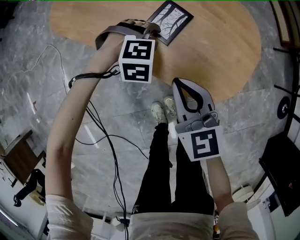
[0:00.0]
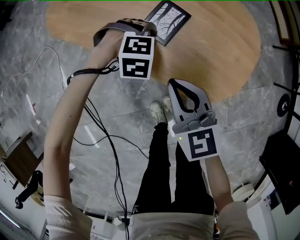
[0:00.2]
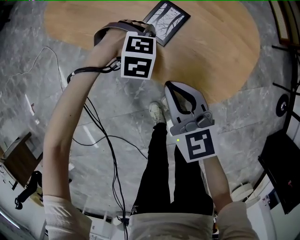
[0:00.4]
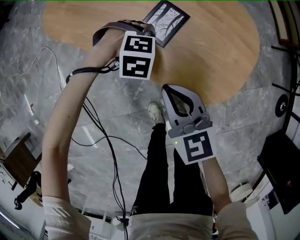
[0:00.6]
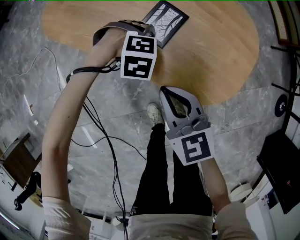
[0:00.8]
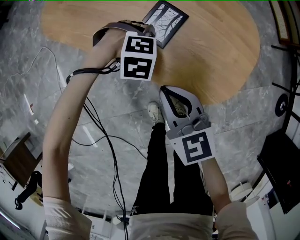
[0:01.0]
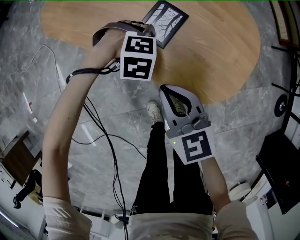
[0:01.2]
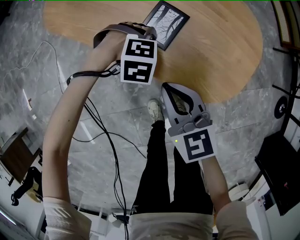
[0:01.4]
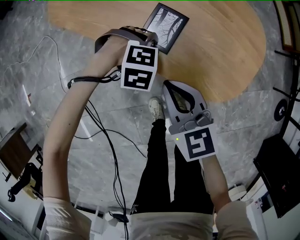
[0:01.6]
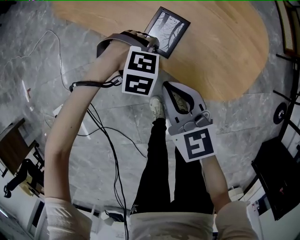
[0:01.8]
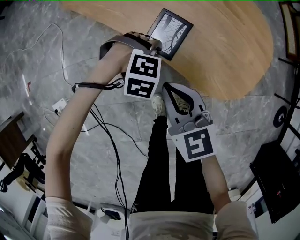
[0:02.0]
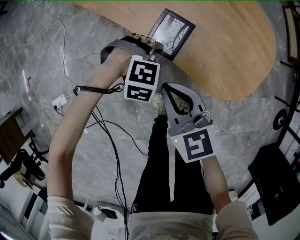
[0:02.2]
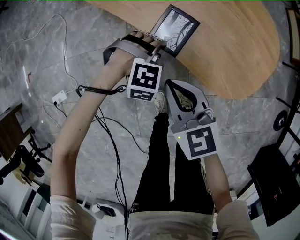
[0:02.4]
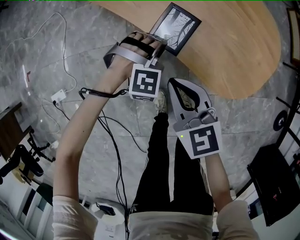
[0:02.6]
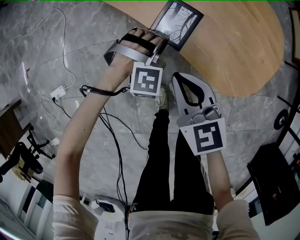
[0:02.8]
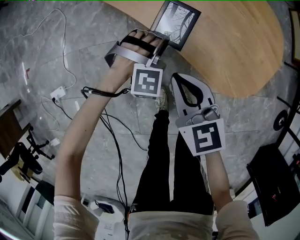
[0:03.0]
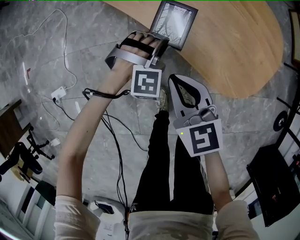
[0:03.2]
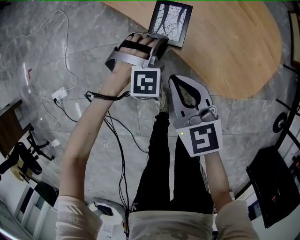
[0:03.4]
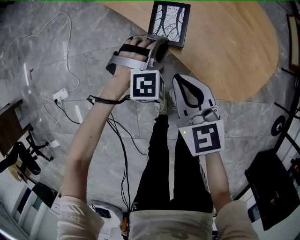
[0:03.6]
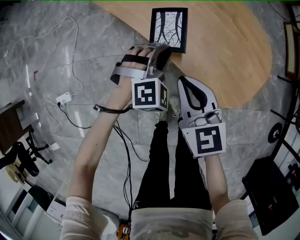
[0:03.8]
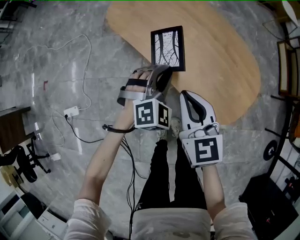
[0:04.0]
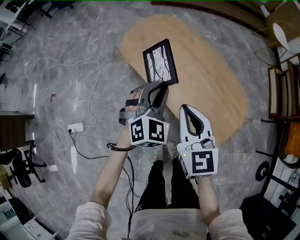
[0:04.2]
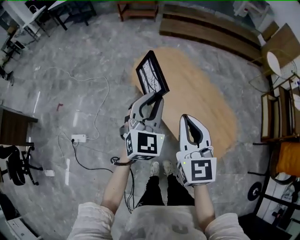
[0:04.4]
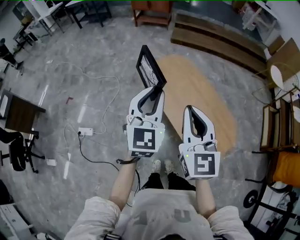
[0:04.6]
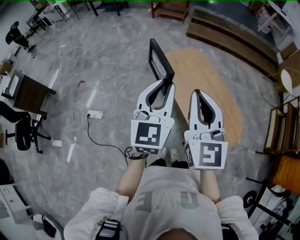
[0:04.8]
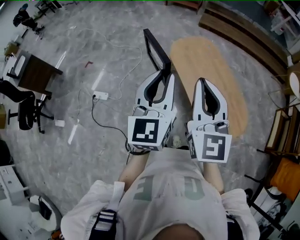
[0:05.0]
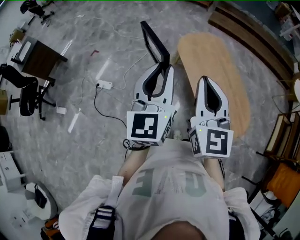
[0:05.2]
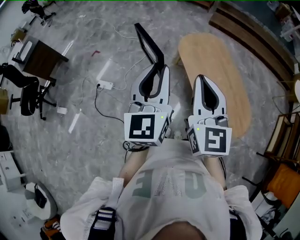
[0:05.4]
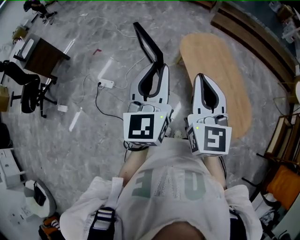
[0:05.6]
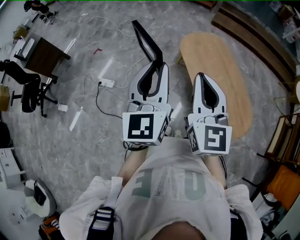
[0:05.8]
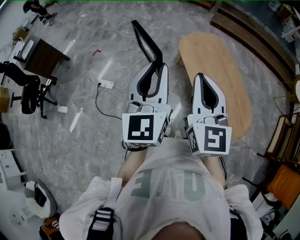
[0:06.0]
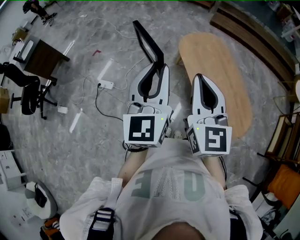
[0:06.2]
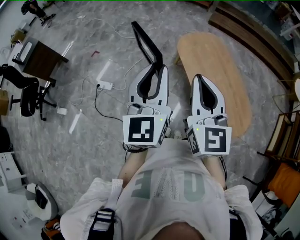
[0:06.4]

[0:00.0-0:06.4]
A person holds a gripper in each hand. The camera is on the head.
0:00.0 to 0:01.6: The left gripper moves about 5 cm.
0:01.6 to 0:03.2: The left gripper moves some 5 cm, swivels about 30 degrees, and closes its fingers. The right gripper shifts by approximately 5 cm.
0:03.2 to 0:04.8: Both grippers move upward, roughly 60 cm. The left gripper angles its fingers upward, by approximately 50 degrees. Meanwhile the right gripper tips its fingers upward by roughly 30 degrees.
0:04.8 to 0:06.4: The left gripper moves to the left and backward, about 10 cm; the right gripper is displaced to the left by some 5 cm.

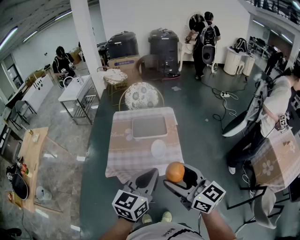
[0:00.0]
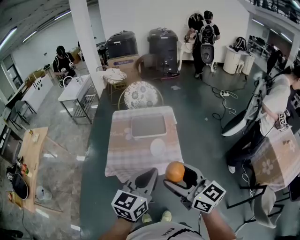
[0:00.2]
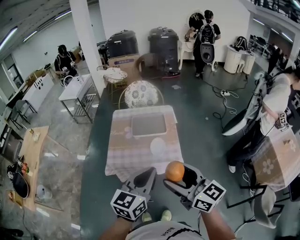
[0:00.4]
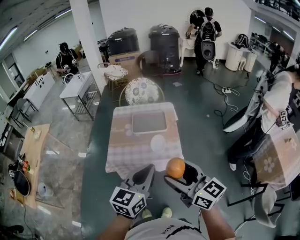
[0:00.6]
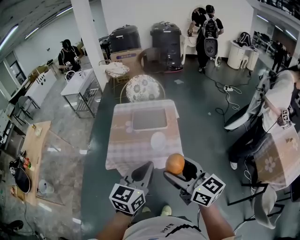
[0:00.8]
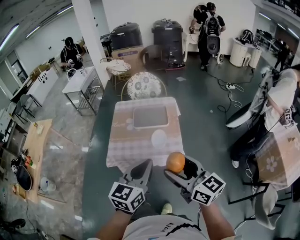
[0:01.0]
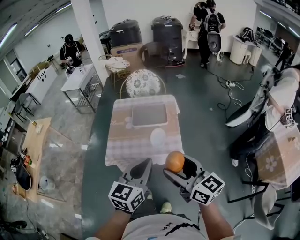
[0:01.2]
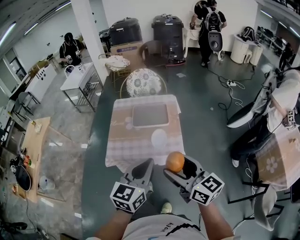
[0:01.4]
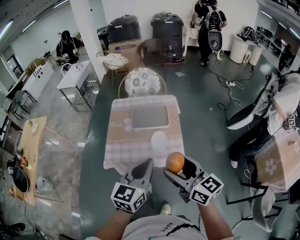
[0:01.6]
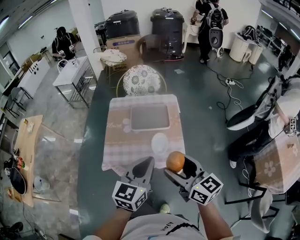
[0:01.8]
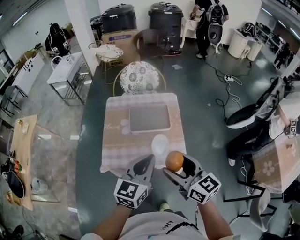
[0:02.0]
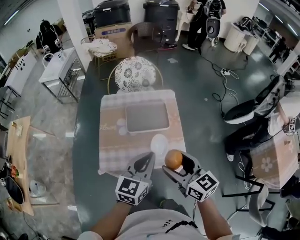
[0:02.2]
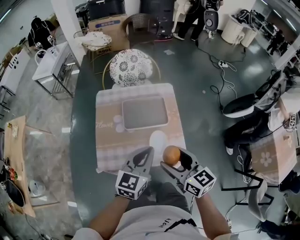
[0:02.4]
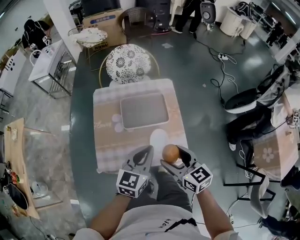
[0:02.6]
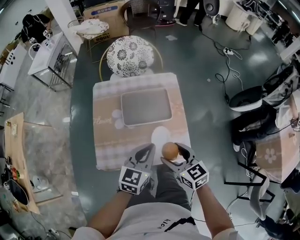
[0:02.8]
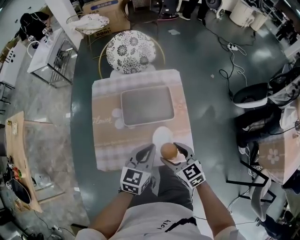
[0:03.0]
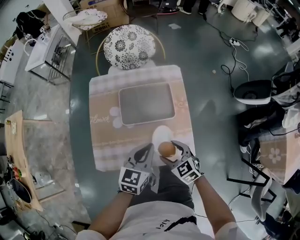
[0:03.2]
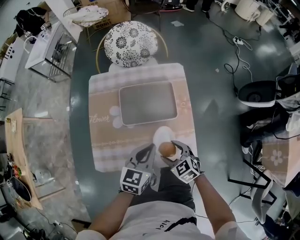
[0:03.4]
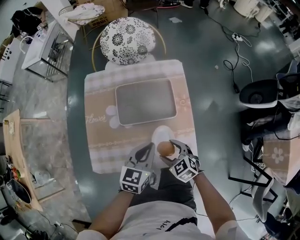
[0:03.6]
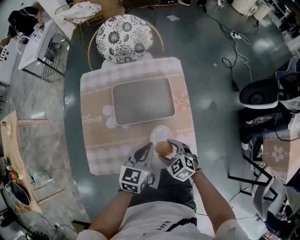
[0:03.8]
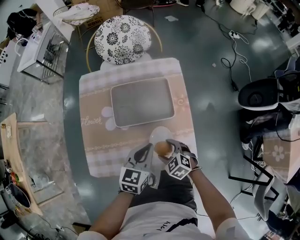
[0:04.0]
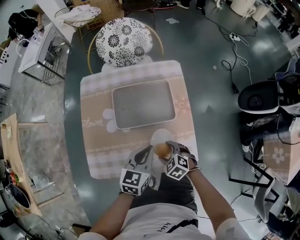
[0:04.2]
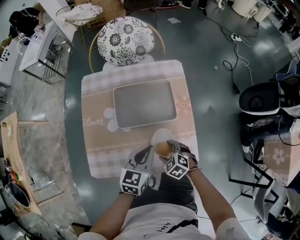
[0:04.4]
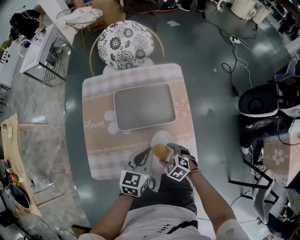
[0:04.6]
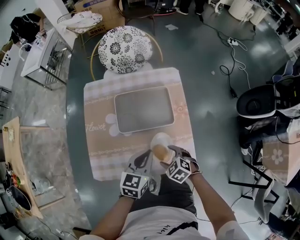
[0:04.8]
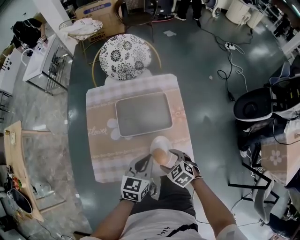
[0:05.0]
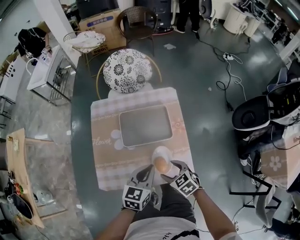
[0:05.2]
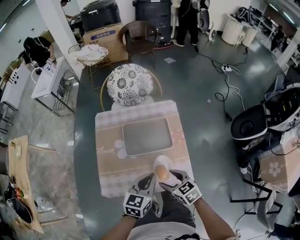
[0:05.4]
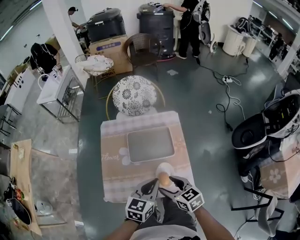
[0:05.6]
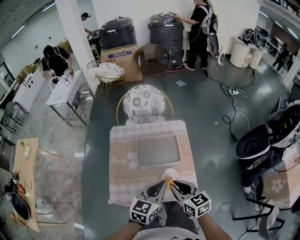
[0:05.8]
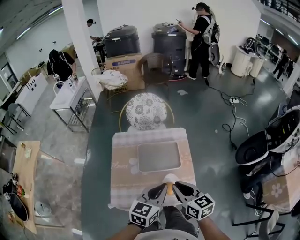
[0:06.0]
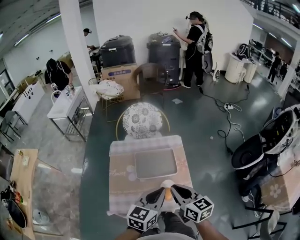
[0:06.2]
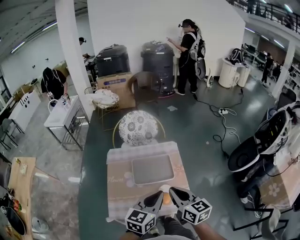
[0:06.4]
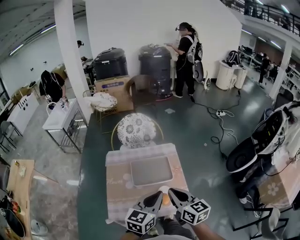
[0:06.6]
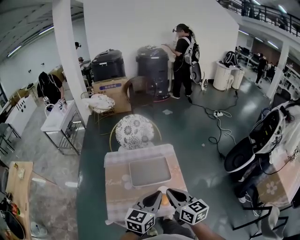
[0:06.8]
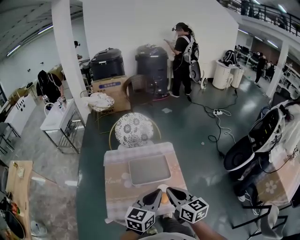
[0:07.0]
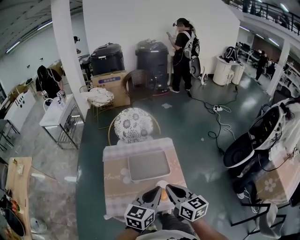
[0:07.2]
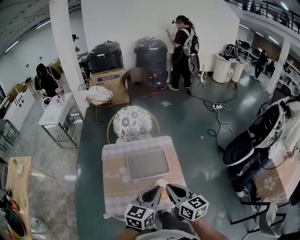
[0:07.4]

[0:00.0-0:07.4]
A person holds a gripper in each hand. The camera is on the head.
0:00.0 to 0:01.4: The right gripper moves about 5 cm, while the left gripper moves roughly 5 cm.
0:01.4 to 0:03.0: The right gripper travels downward and forward by about 35 cm, and angles its fingers downward, by approximately 30 degrees; the left gripper travels forward and downward by approximately 35 cm.
0:03.0 to 0:04.4: The left gripper shifts roughly 10 cm downward, while the right gripper shifts about 20 cm downward, and rotates some 30 degrees.
0:04.4 to 0:06.0: The left gripper heads upward, covering roughly 20 cm. The right gripper goes about 35 cm upward, points its fingers about 40 degrees further upward, and closes.
0:06.0 to 0:07.4: The grippers stay close to where they were, moving slightly.

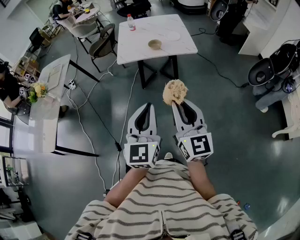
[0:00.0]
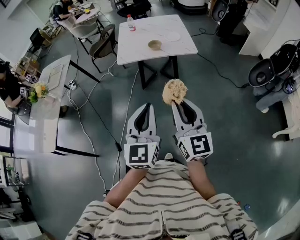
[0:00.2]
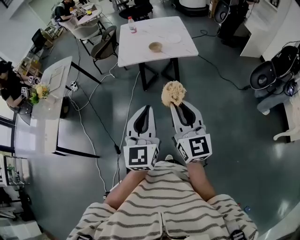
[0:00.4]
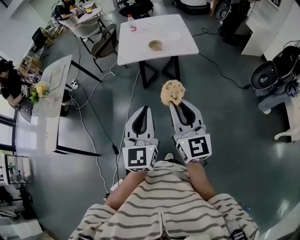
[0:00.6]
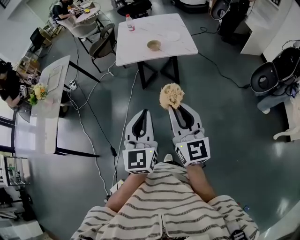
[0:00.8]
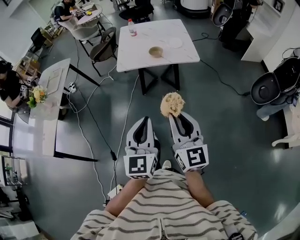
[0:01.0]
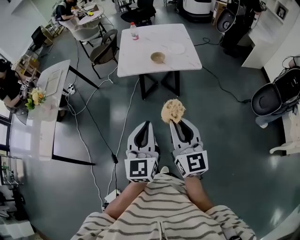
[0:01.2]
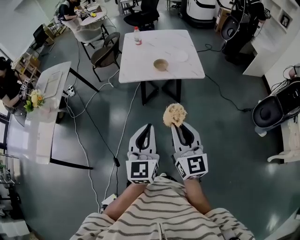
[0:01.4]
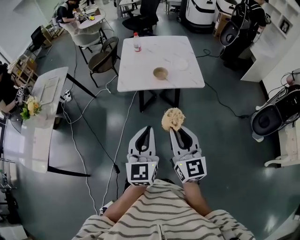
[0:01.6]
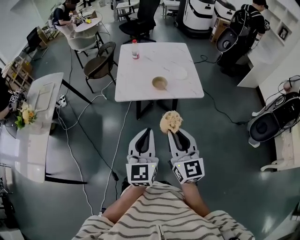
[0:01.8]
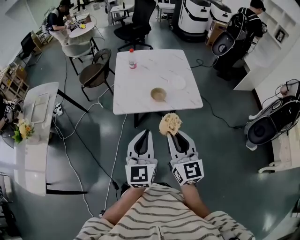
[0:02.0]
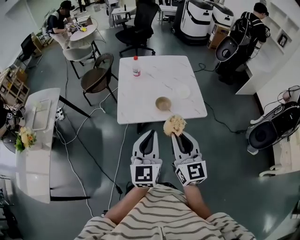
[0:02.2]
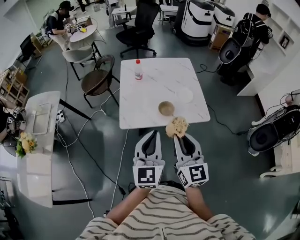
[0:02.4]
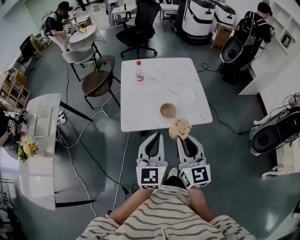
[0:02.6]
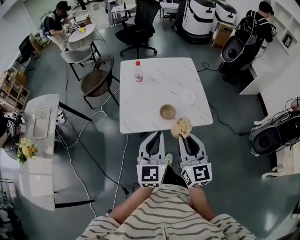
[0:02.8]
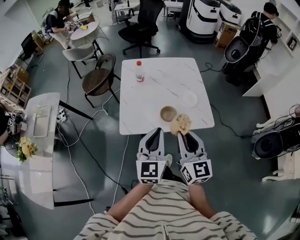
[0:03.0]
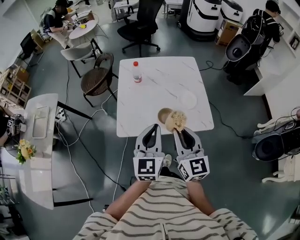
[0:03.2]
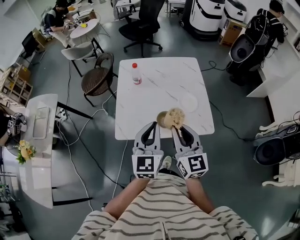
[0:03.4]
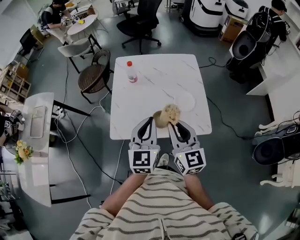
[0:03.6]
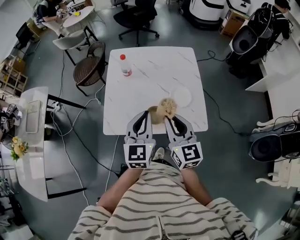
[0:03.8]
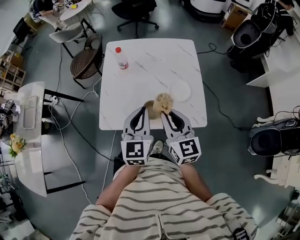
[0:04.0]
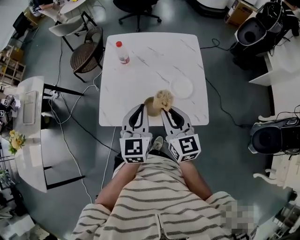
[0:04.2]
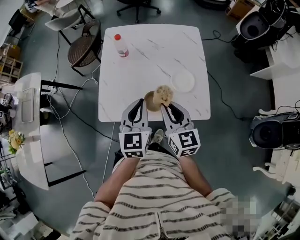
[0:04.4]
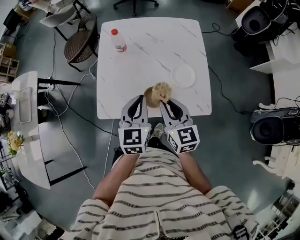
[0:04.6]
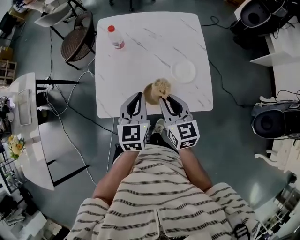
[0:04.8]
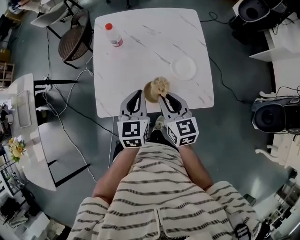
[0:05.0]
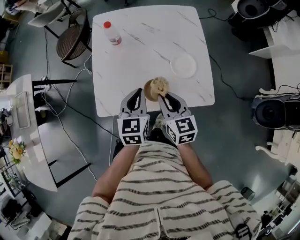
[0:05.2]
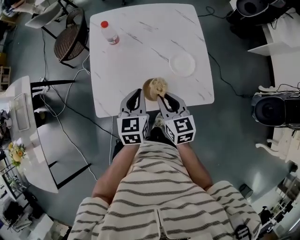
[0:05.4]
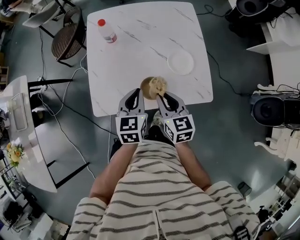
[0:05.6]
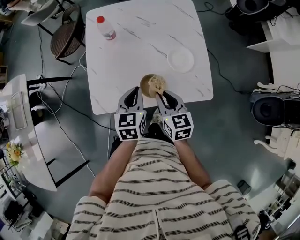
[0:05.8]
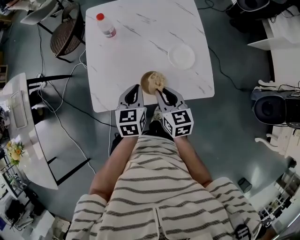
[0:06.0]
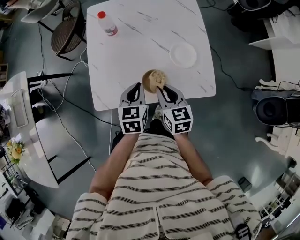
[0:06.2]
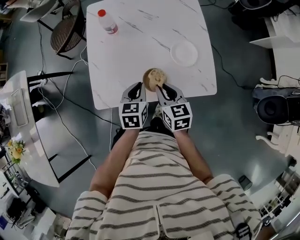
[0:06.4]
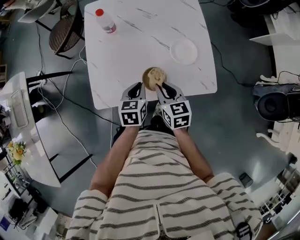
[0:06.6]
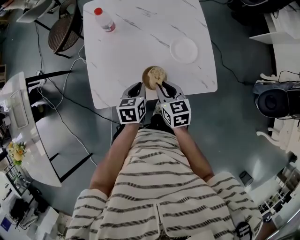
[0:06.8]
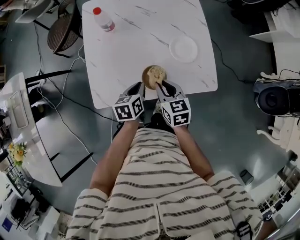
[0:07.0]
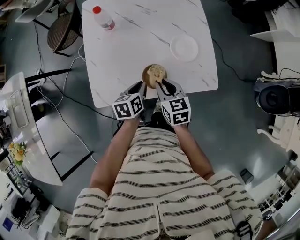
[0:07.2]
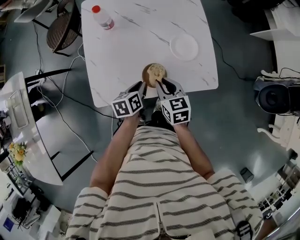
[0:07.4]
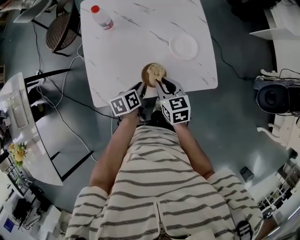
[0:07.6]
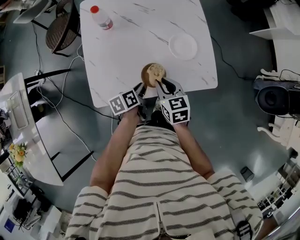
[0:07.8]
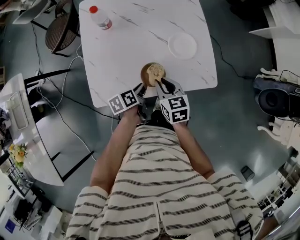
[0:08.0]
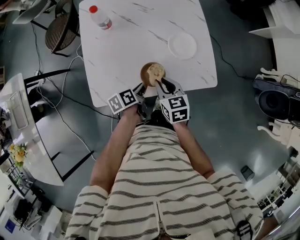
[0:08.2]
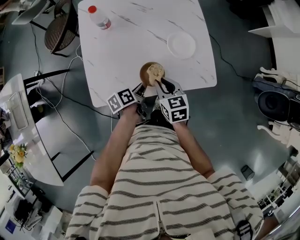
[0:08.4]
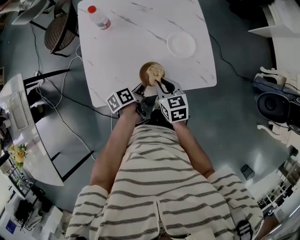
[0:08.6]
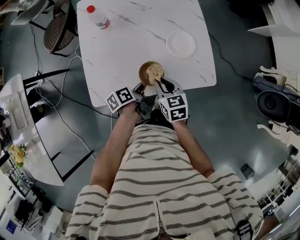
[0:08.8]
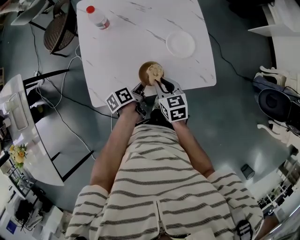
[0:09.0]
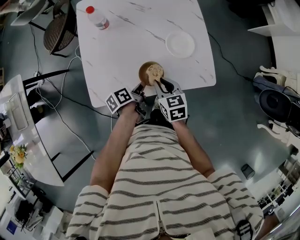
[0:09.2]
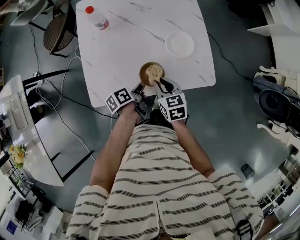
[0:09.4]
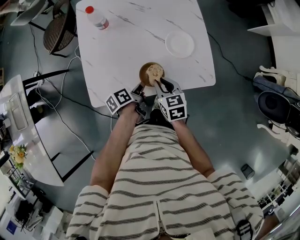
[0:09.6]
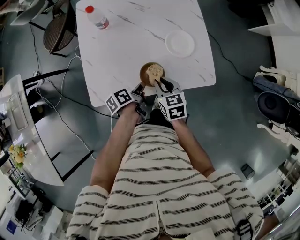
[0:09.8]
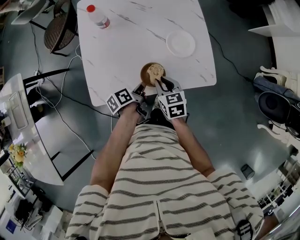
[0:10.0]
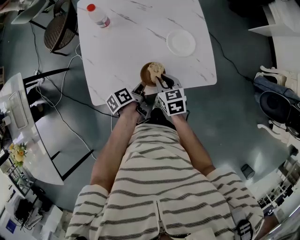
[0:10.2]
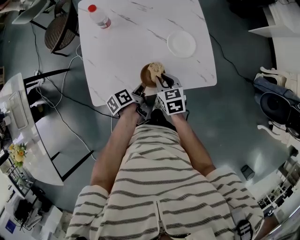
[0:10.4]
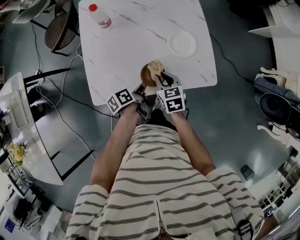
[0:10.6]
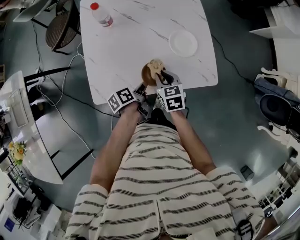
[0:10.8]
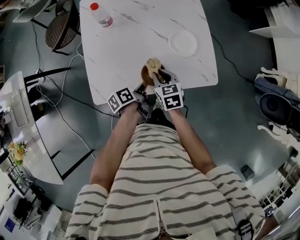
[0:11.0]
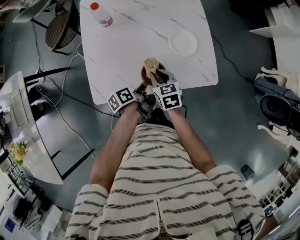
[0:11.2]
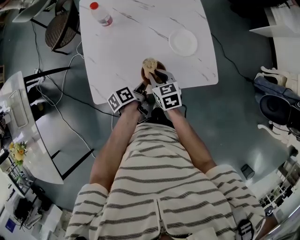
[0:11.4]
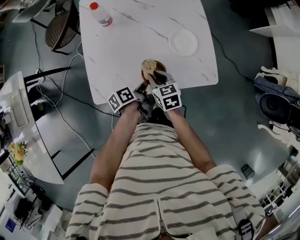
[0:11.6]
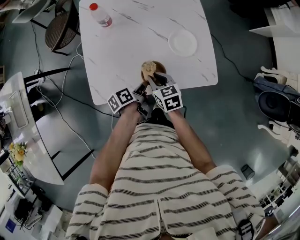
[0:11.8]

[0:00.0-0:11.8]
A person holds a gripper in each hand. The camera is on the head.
0:00.0 to 0:01.4: The two grippers go approximately 10 cm forward.
0:01.4 to 0:03.0: Both grippers move forward, approximately 35 cm.
0:03.0 to 0:04.4: Both grippers travel together forward and downward, approximately 20 cm.
0:04.4 to 0:06.0: The grippers both shift downward by approximately 10 cm. The left gripper turns by approximately 20 degrees.
0:06.0 to 0:07.4: The left gripper moves downward, roughly 10 cm, and swivels approximately 30 degrees.
0:07.4 to 0:08.8: The left gripper swivels about 30 degrees.
0:08.8 to 0:11.8: There are only small adjustments of the grippers.
